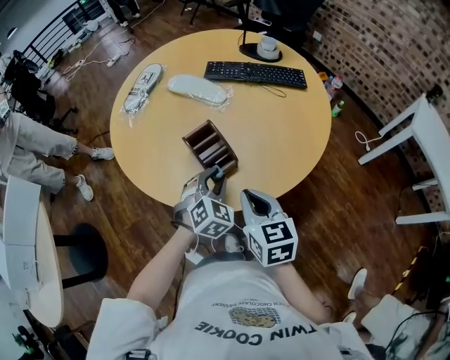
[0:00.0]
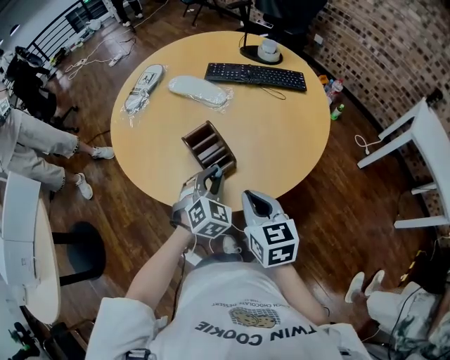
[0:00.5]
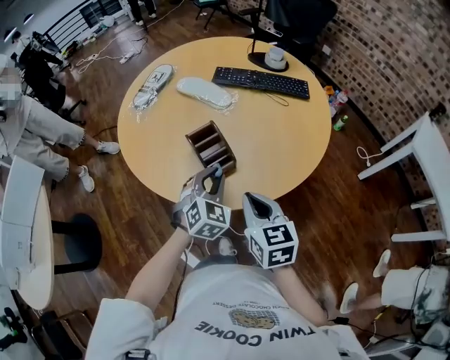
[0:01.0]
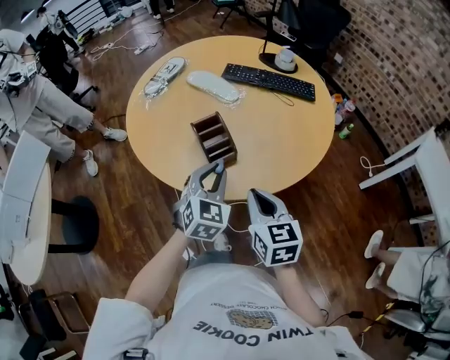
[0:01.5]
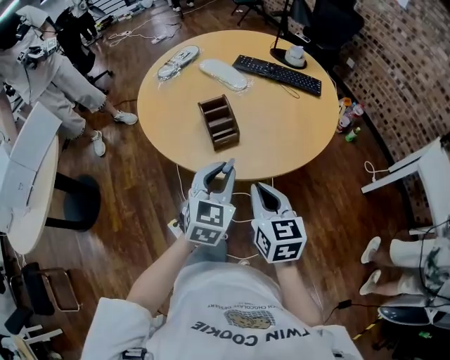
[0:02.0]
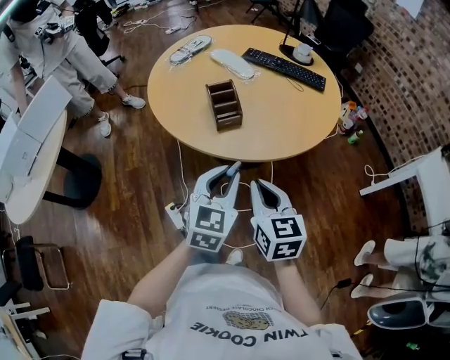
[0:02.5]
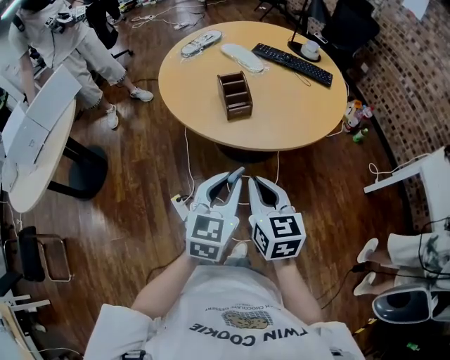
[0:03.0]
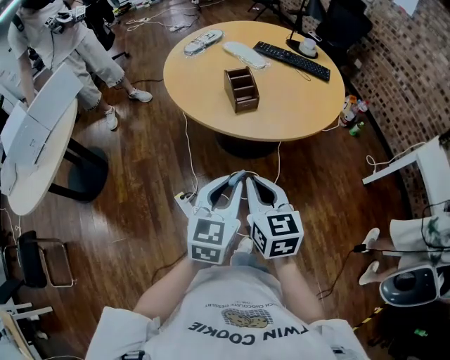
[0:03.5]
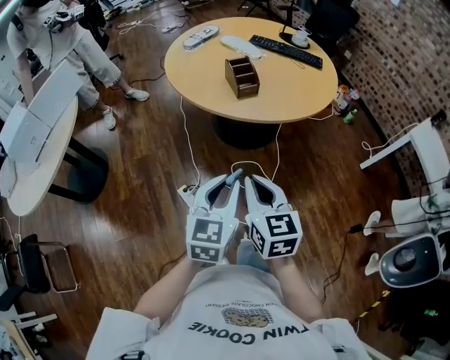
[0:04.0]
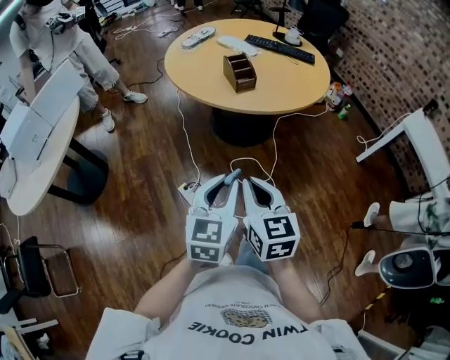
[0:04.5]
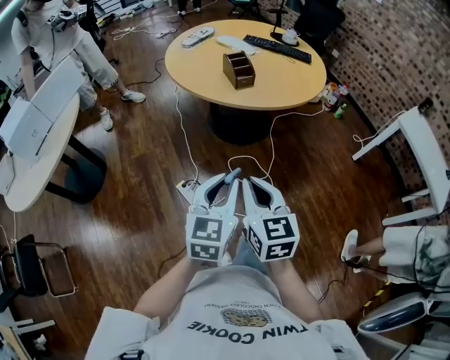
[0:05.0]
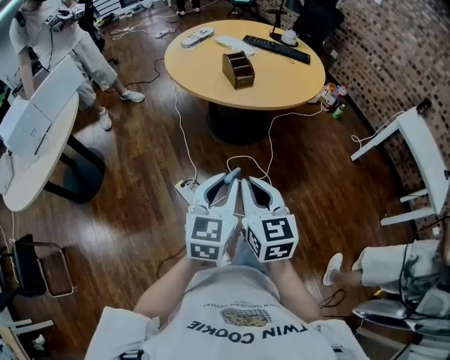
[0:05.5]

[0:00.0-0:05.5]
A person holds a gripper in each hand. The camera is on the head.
0:00.0 to 0:02.0: The right gripper is displaced backward and to the right by some 10 cm; the left gripper heads backward and upward, covering roughly 20 cm, and rotates approximately 30 degrees.
0:02.0 to 0:03.5: The left gripper is displaced backward by roughly 20 cm; the right gripper moves backward and to the left, some 20 cm.
0:03.5 to 0:05.5: Both grippers travel together backward, some 20 cm.

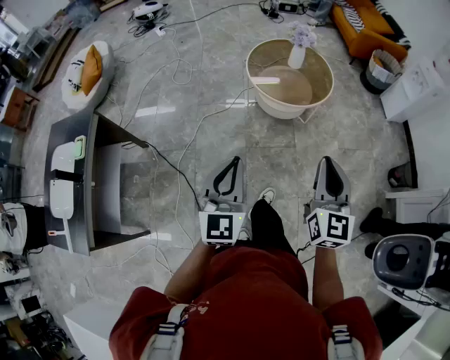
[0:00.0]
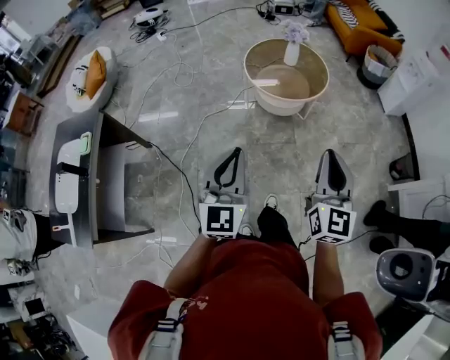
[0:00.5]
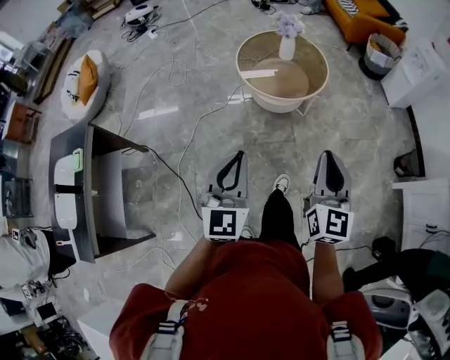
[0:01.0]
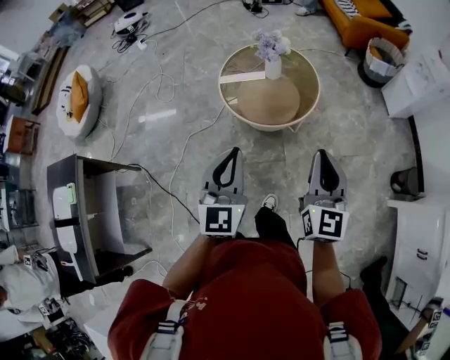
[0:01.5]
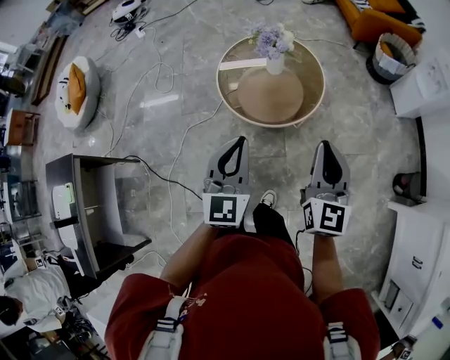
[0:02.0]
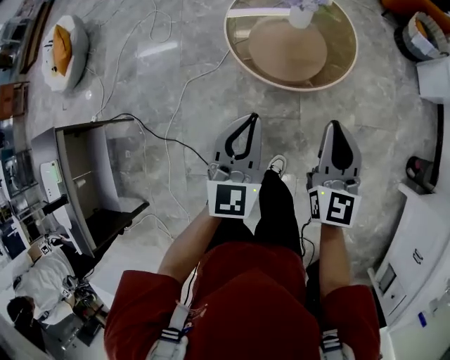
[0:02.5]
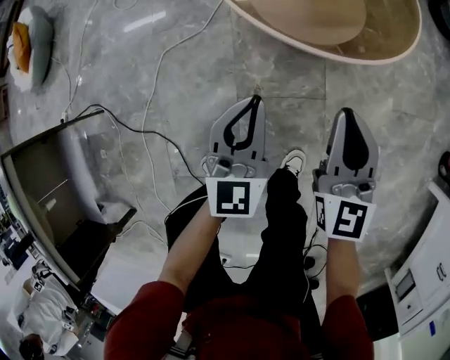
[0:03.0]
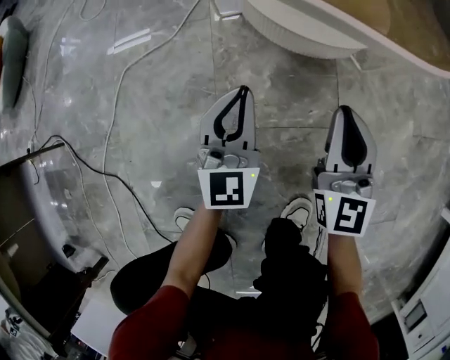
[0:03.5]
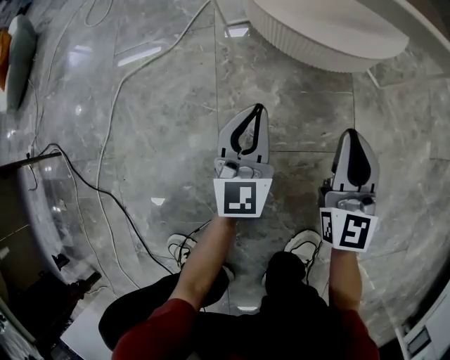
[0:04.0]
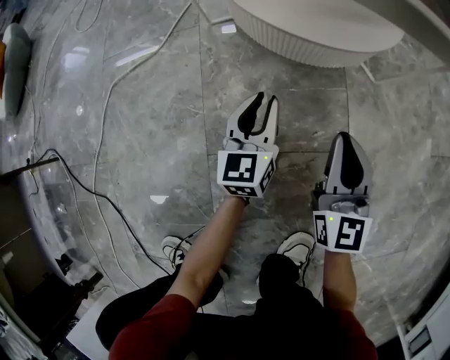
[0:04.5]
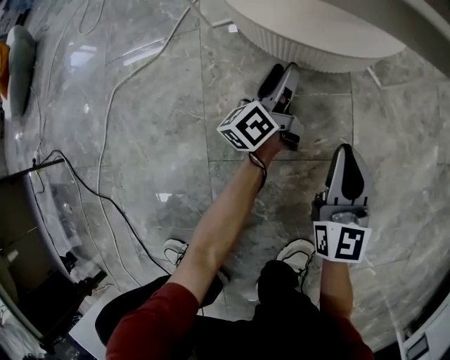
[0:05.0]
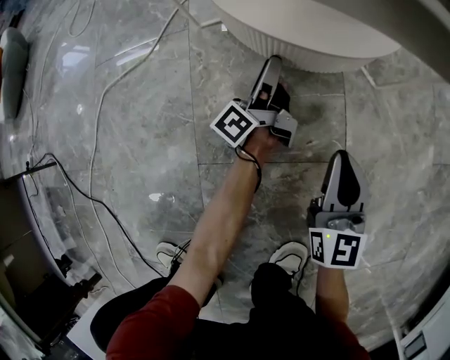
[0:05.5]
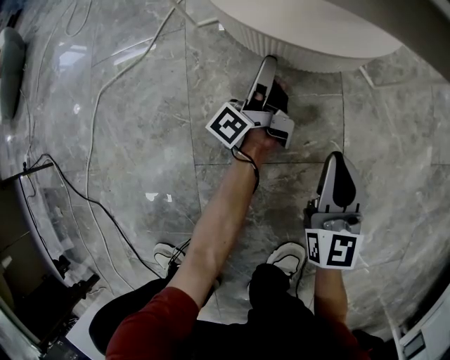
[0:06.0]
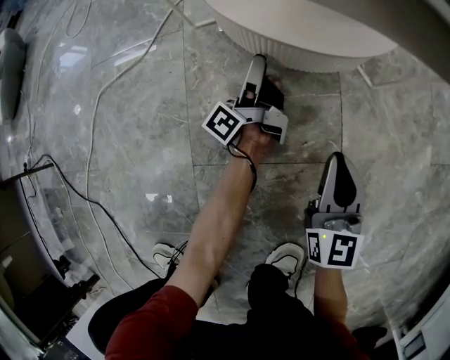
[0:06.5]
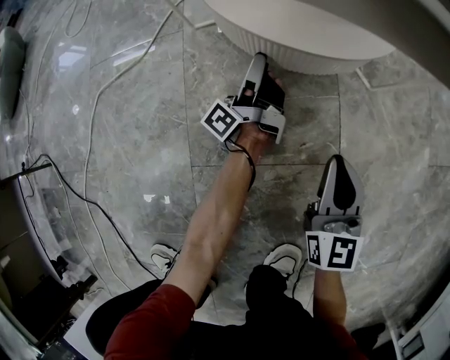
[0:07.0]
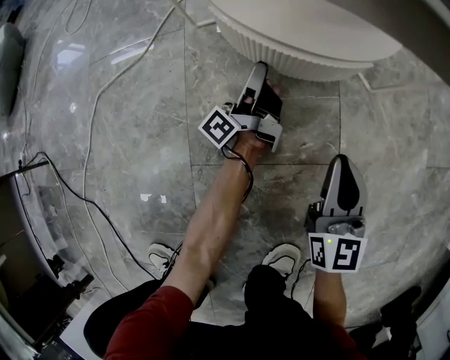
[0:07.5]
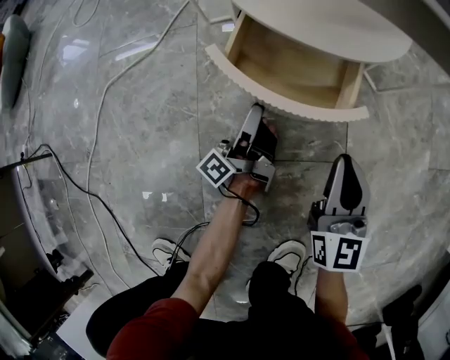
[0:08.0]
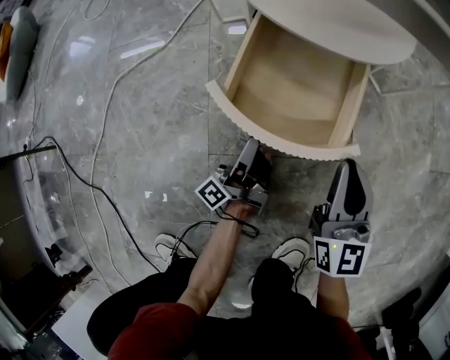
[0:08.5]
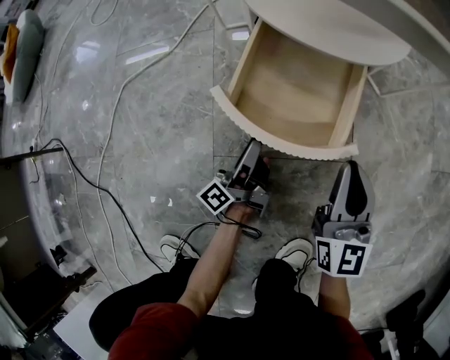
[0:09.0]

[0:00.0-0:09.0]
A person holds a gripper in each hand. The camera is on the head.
0:00.0 to 0:02.0: The two grippers go roughly 35 cm forward and to the right.
0:02.0 to 0:04.5: Both grippers travel together downward, about 80 cm. The left gripper rotates roughly 20 degrees.
0:04.5 to 0:07.0: The left gripper shifts approximately 10 cm forward, rotates around the line of its fingers by some 70 degrees, counterclockwise from behind, and opens.
0:07.0 to 0:09.0: The right gripper goes roughly 5 cm upward. The left gripper is displaced backward by about 20 cm.

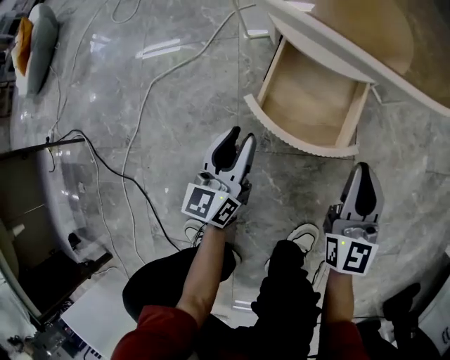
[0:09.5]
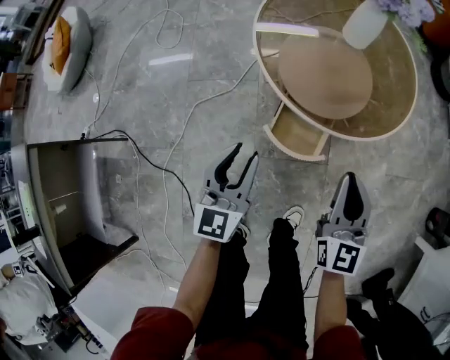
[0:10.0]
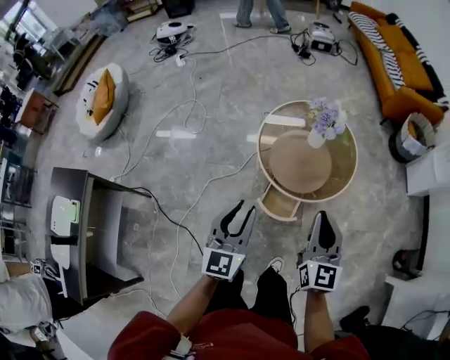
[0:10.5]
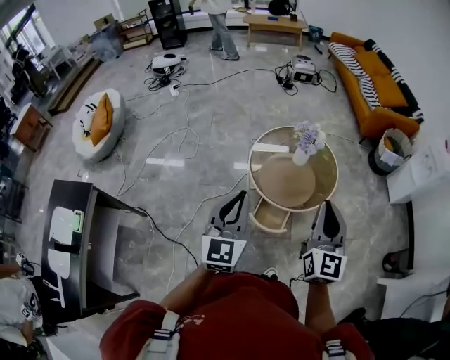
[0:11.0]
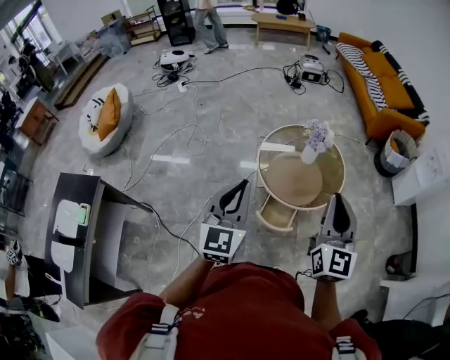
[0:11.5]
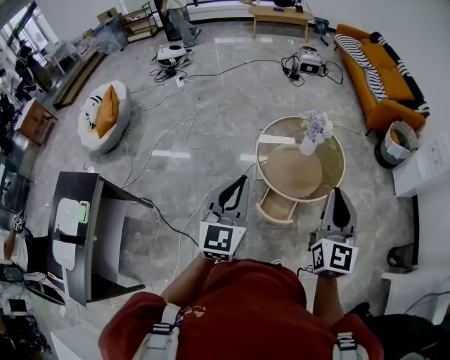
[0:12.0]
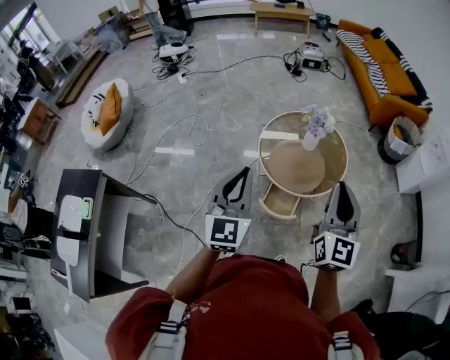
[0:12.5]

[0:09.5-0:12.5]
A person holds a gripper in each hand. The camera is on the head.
0:09.5 to 0:11.0: Both grippers move upward, some 80 cm. The left gripper turns by about 30 degrees, and closes up.
0:11.0 to 0:12.5: The grippers stay close to where they were, moving slightly.

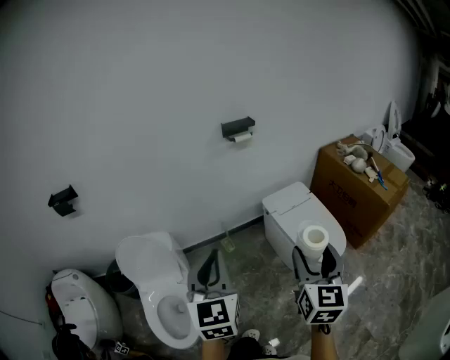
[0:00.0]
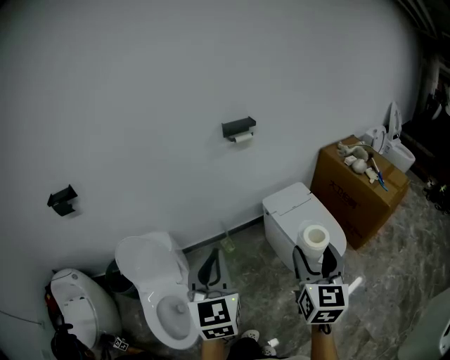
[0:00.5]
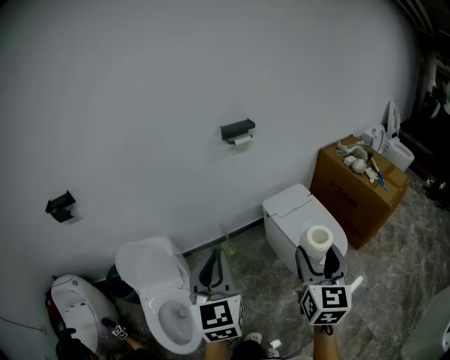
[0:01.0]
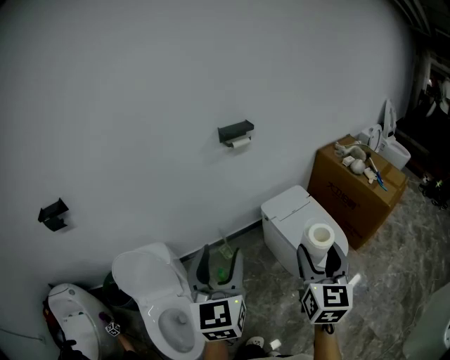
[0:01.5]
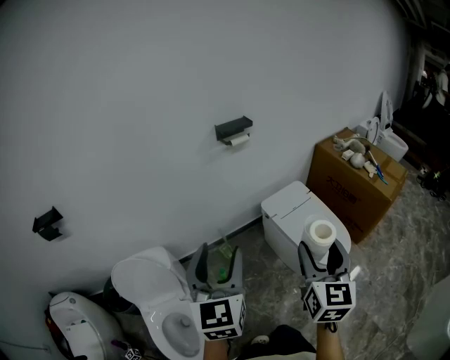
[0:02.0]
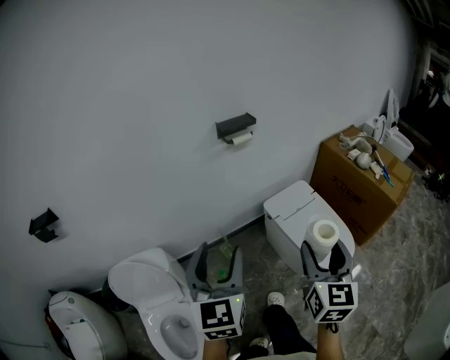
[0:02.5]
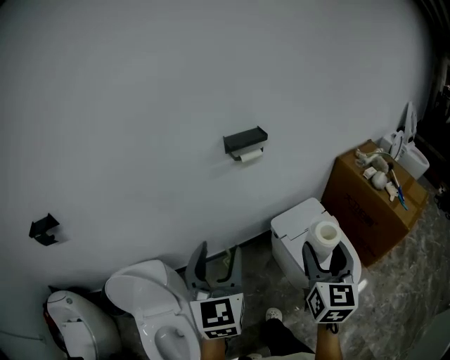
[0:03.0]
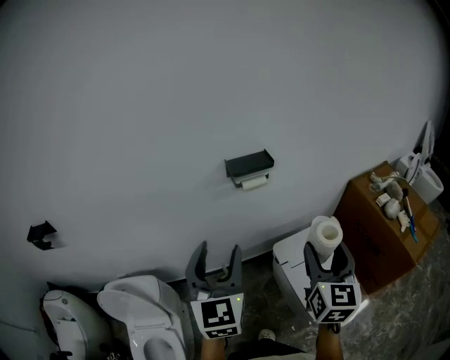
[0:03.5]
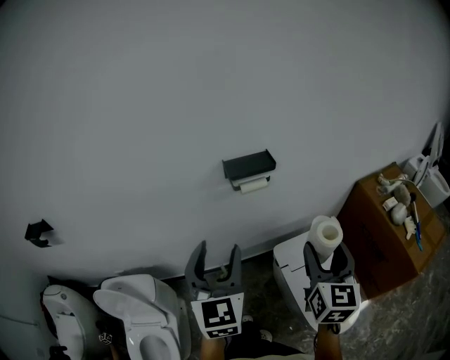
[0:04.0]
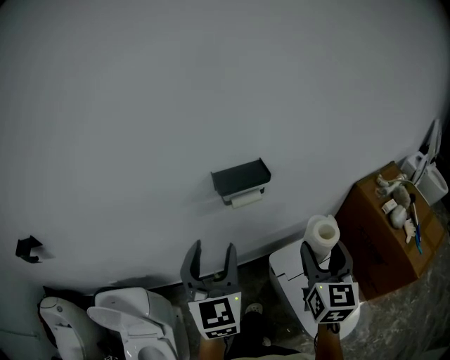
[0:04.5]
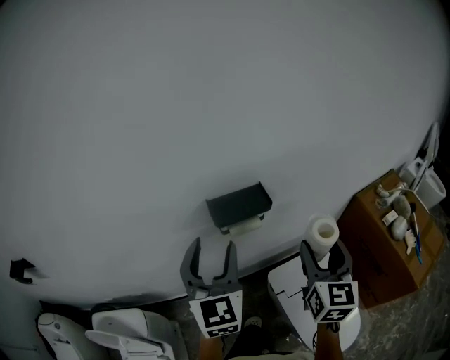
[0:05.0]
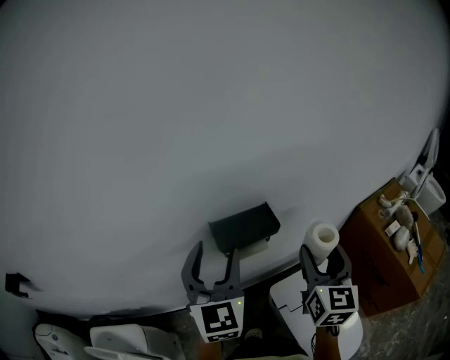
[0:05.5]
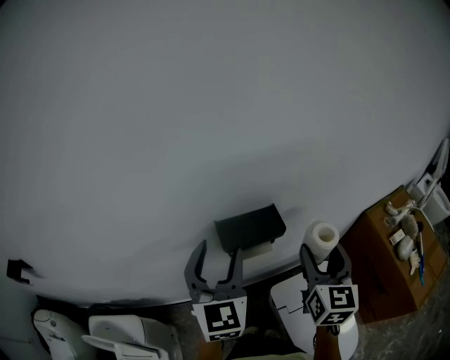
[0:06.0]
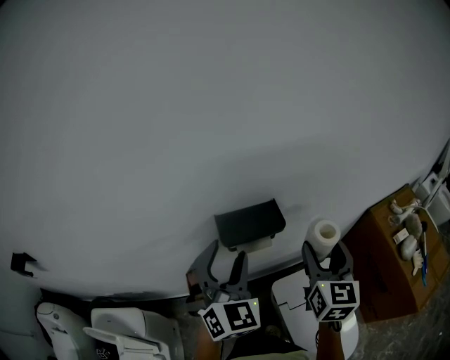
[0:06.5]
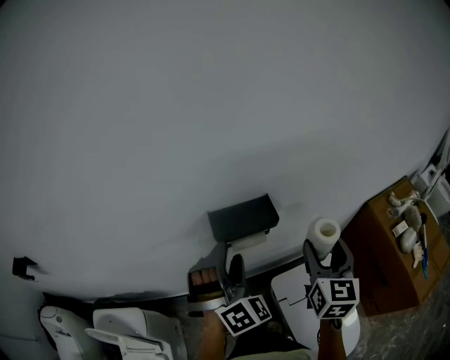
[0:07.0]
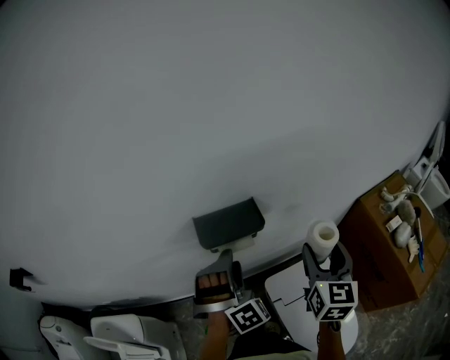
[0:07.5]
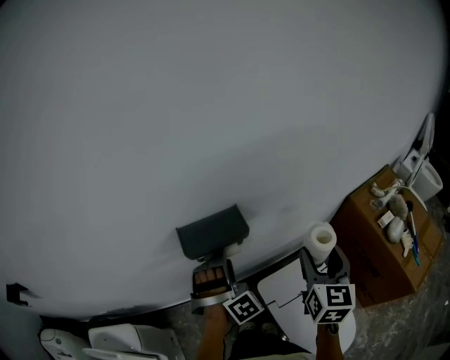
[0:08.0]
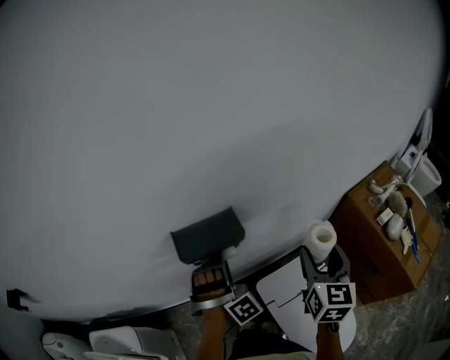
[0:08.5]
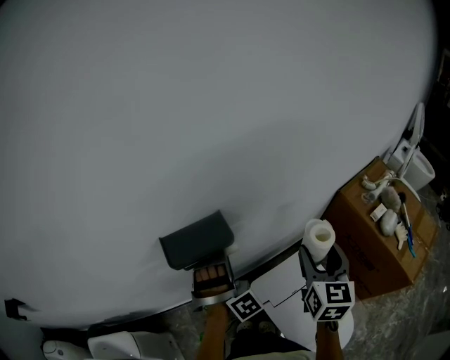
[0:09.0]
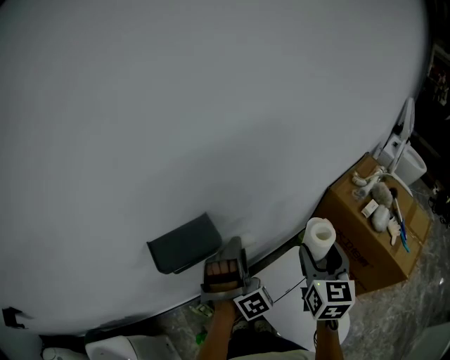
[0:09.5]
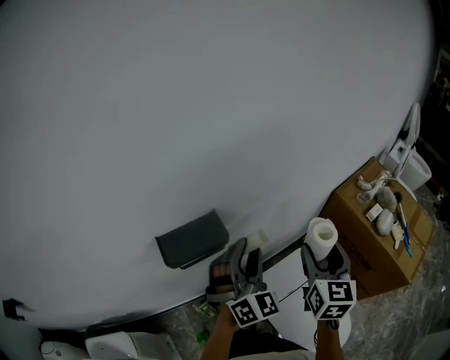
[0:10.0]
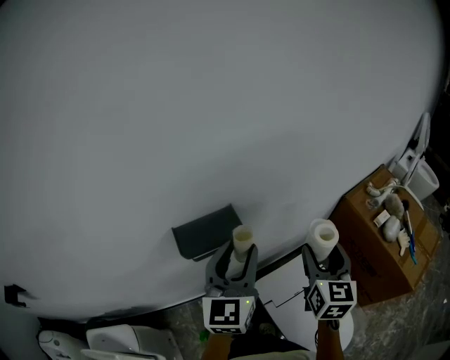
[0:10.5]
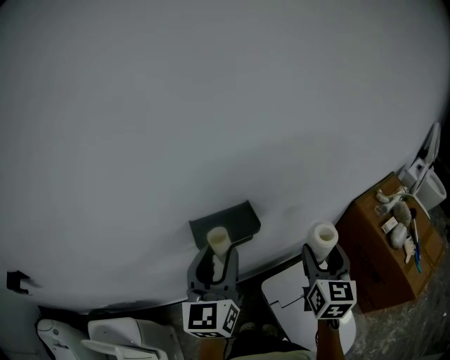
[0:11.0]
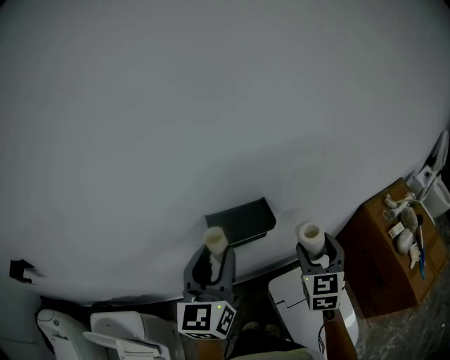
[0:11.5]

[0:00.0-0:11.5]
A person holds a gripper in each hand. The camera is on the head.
0:00.0 to 0:02.0: The grippers both shift forward by roughly 10 cm. The left gripper opens its fingers.
0:02.0 to 0:04.0: The two grippers go approximately 35 cm forward.
0:04.0 to 0:06.0: The two grippers go approximately 25 cm forward.
0:06.0 to 0:07.5: The right gripper moves to the right, approximately 5 cm. The left gripper is displaced downward and to the right by some 15 cm, and rolls clockwise, seen from behind, by approximately 60 degrees.
0:07.5 to 0:09.5: The right gripper is displaced to the right by some 10 cm, while the left gripper moves to the right and forward, roughly 15 cm.
0:09.5 to 0:11.5: The right gripper moves to the left, roughly 15 cm, and turns by about 20 degrees; the left gripper moves to the left, upward and backward, some 25 cm, and twists approximately 90 degrees counterclockwise, seen from behind.
